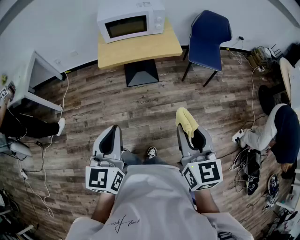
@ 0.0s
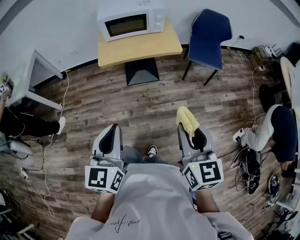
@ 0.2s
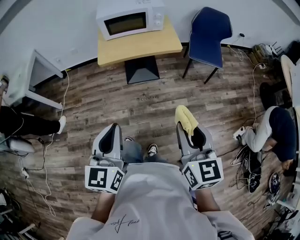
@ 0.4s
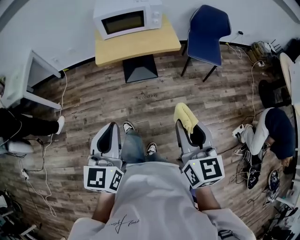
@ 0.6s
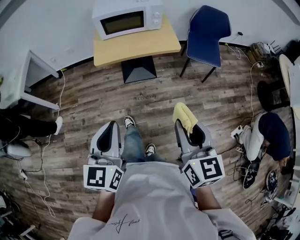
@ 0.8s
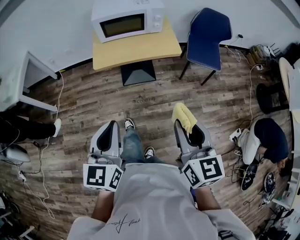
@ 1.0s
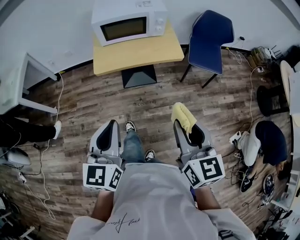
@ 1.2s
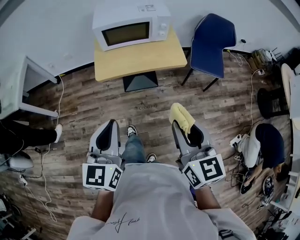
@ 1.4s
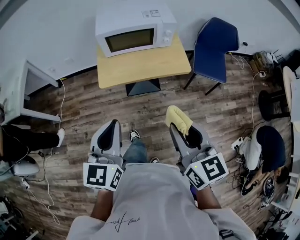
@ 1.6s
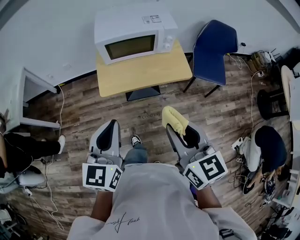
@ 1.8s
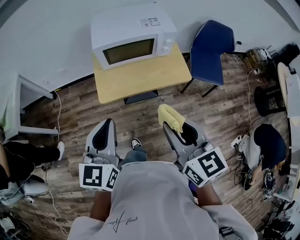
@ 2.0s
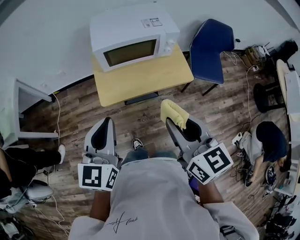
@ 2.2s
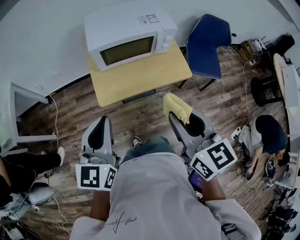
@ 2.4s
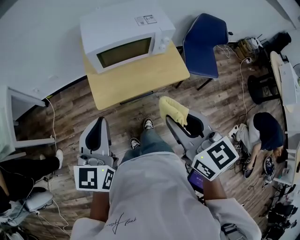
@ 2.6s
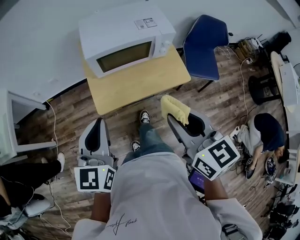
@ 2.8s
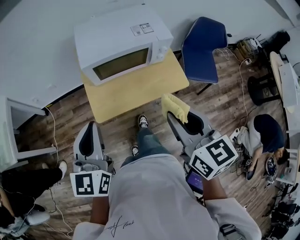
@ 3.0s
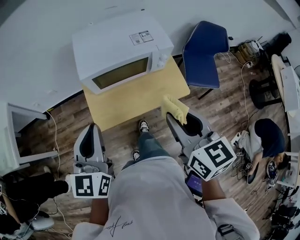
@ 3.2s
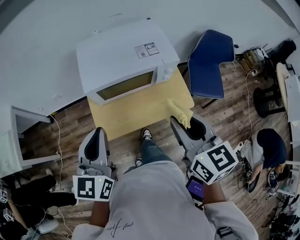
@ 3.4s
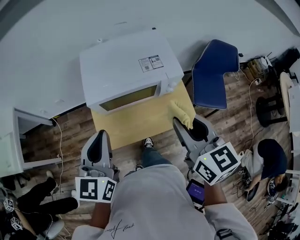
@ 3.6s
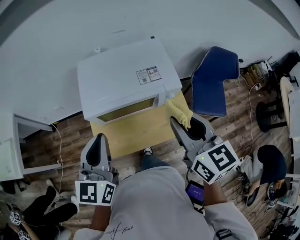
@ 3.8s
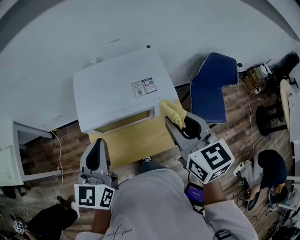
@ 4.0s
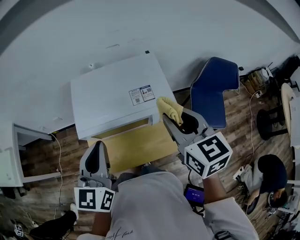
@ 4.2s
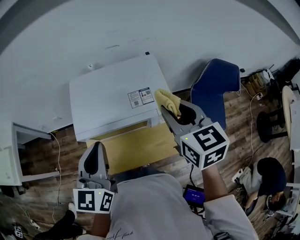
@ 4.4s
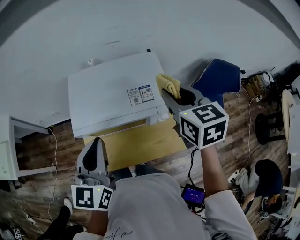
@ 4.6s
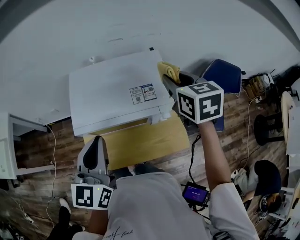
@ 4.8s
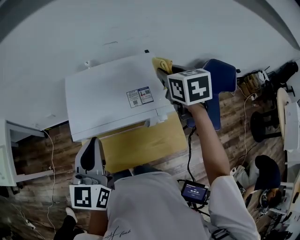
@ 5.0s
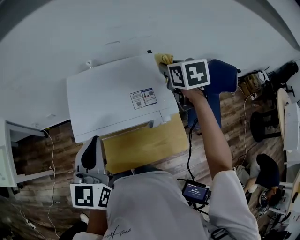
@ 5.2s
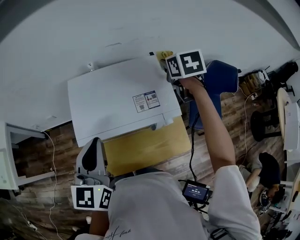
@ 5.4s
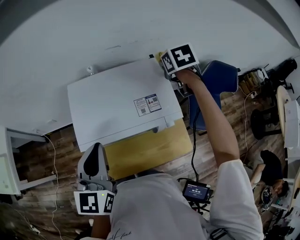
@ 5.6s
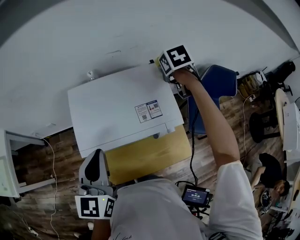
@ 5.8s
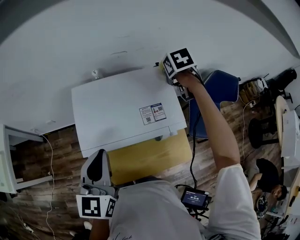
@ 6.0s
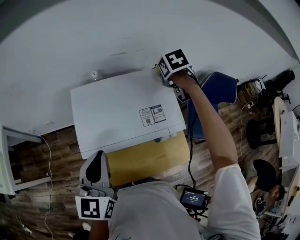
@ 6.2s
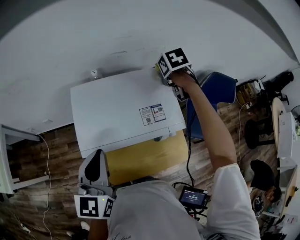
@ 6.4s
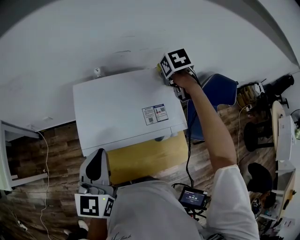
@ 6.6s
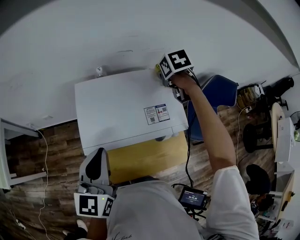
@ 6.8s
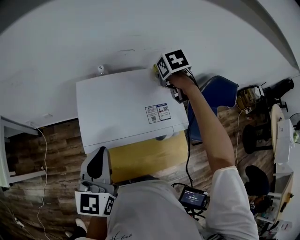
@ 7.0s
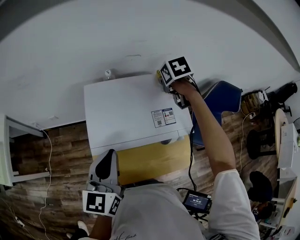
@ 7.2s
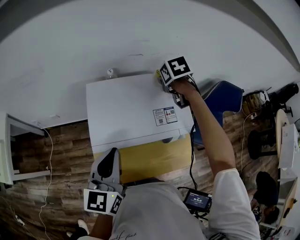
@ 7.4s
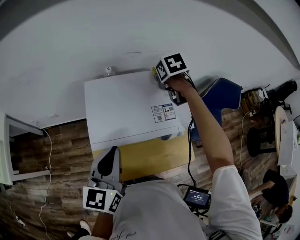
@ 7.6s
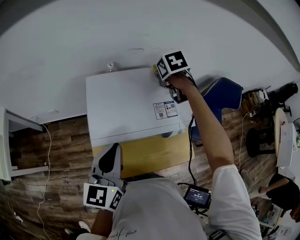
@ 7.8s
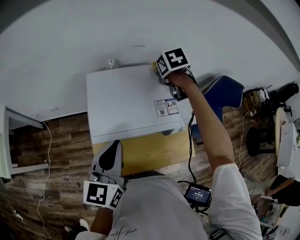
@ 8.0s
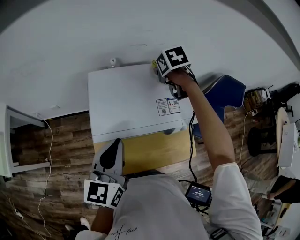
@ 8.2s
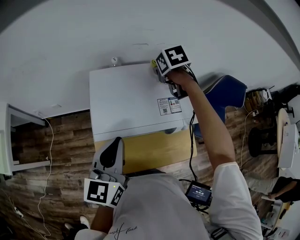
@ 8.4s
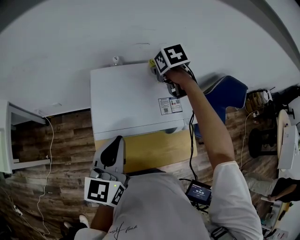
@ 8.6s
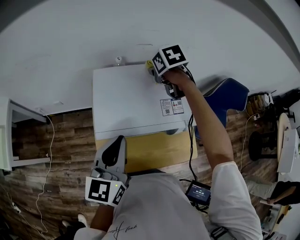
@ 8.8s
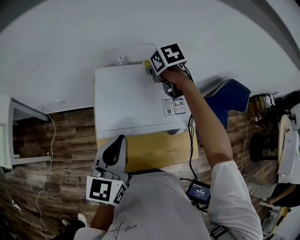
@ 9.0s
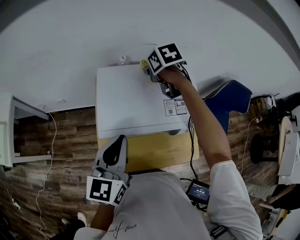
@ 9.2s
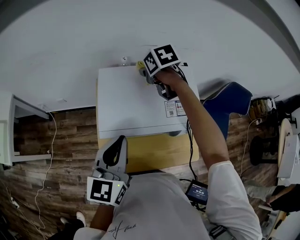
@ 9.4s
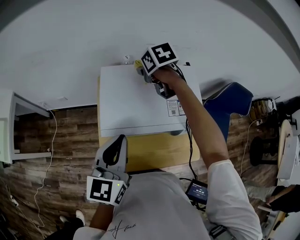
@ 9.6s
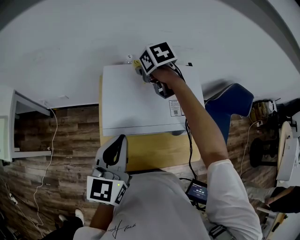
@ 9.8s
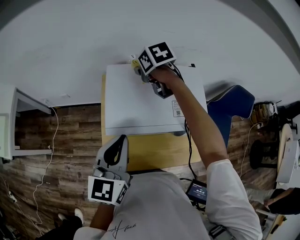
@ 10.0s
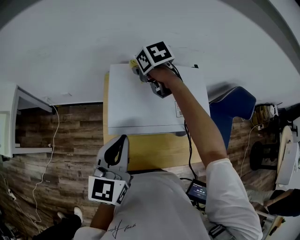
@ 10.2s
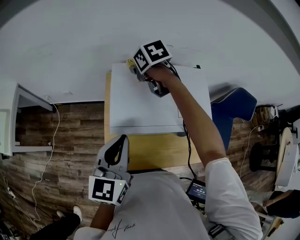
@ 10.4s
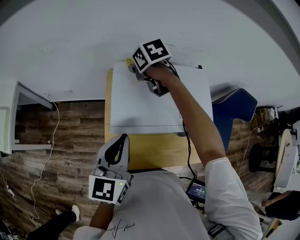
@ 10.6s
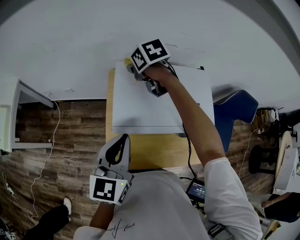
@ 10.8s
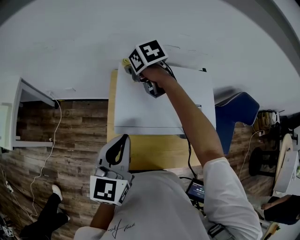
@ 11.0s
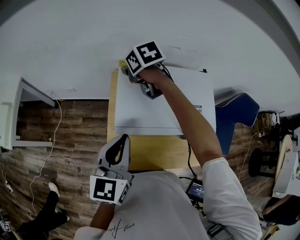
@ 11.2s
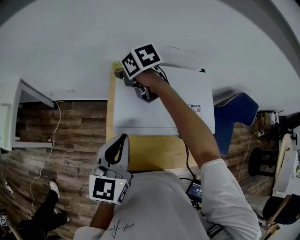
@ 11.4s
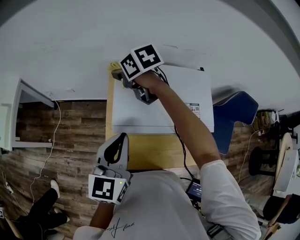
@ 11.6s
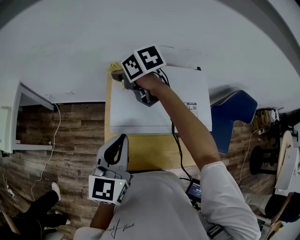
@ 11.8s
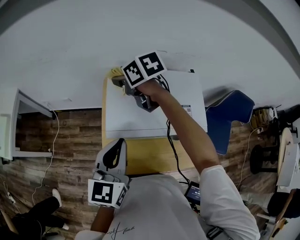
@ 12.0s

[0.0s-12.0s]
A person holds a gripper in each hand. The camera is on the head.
0.0s to 1.6s: The right gripper moves forward and to the left, about 20 cm. The left gripper moves forward, some 20 cm.
1.6s to 3.0s: The right gripper is displaced forward by roughly 20 cm. Meanwhile the left gripper goes about 25 cm forward and to the left.
3.0s to 4.4s: The left gripper moves forward and to the right, approximately 25 cm; the right gripper heads forward, covering about 30 cm.
4.4s to 6.0s: The right gripper is displaced forward by some 25 cm, and points its fingers roughly 40 degrees further downward. The left gripper goes some 5 cm forward.
6.0s to 7.6s: The right gripper is displaced to the left by some 10 cm.
7.6s to 9.0s: The right gripper heads to the left, covering approximately 10 cm.
9.0s to 10.4s: The right gripper shifts approximately 15 cm to the left.
10.4s to 12.0s: The right gripper moves to the left, approximately 5 cm.

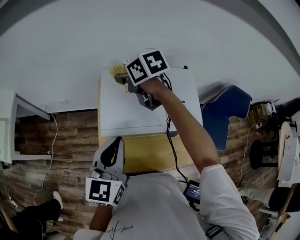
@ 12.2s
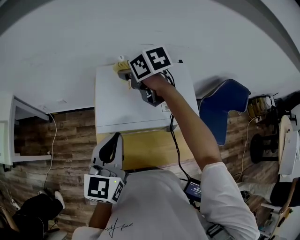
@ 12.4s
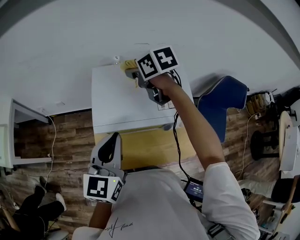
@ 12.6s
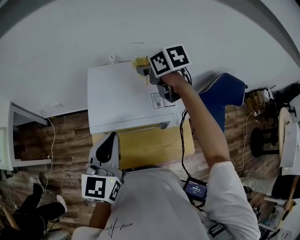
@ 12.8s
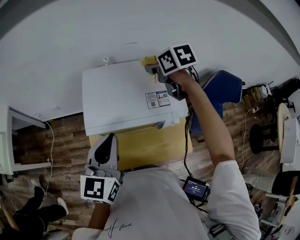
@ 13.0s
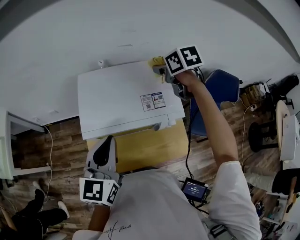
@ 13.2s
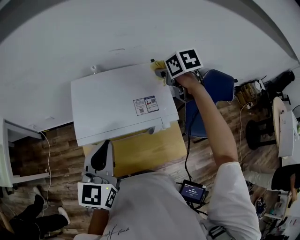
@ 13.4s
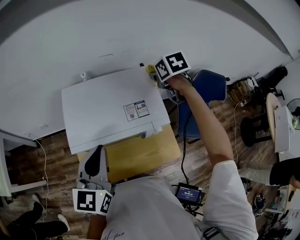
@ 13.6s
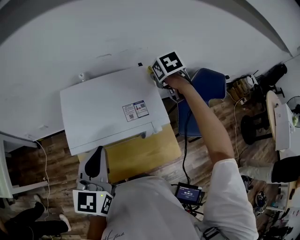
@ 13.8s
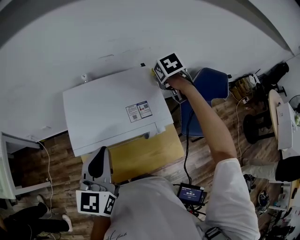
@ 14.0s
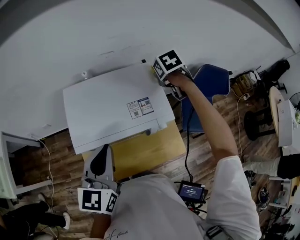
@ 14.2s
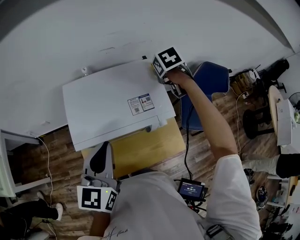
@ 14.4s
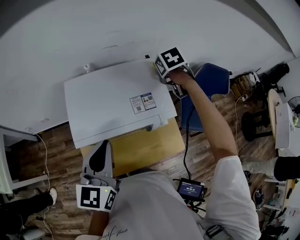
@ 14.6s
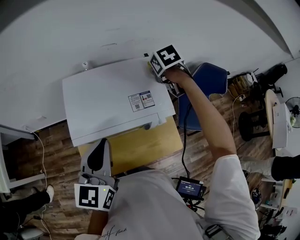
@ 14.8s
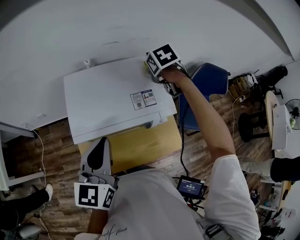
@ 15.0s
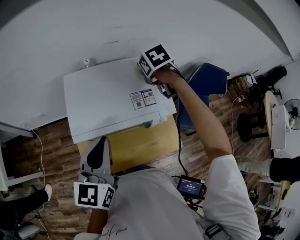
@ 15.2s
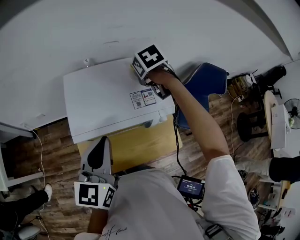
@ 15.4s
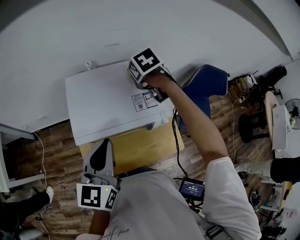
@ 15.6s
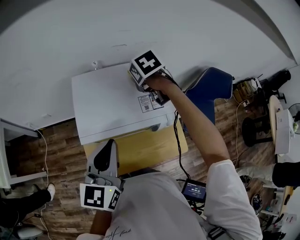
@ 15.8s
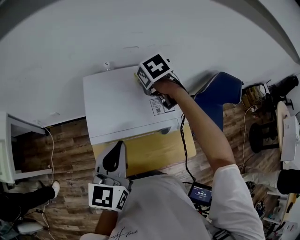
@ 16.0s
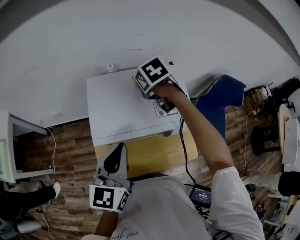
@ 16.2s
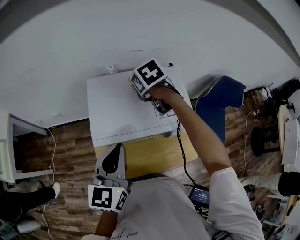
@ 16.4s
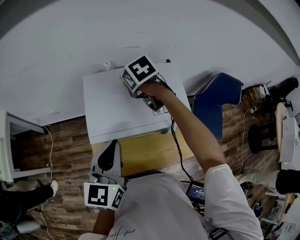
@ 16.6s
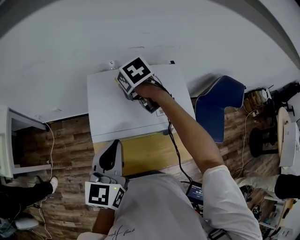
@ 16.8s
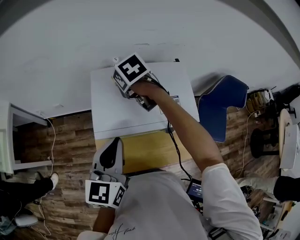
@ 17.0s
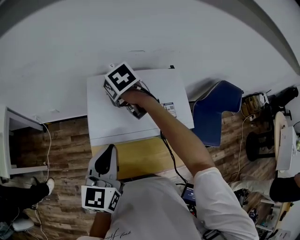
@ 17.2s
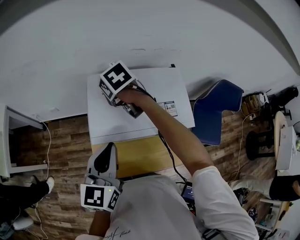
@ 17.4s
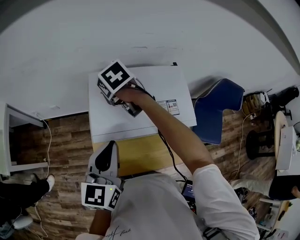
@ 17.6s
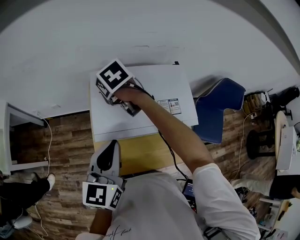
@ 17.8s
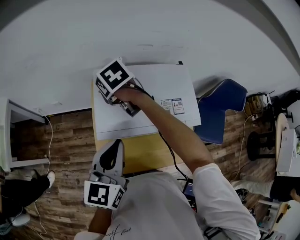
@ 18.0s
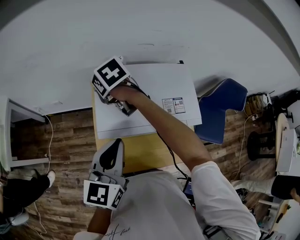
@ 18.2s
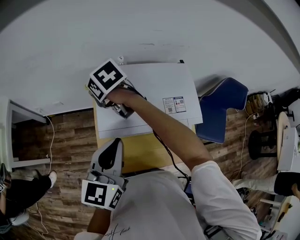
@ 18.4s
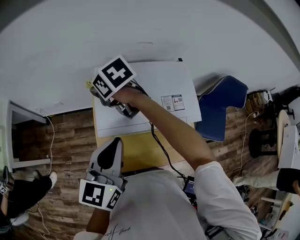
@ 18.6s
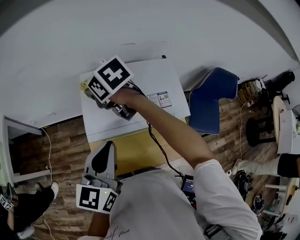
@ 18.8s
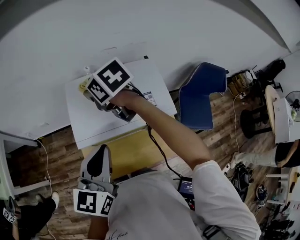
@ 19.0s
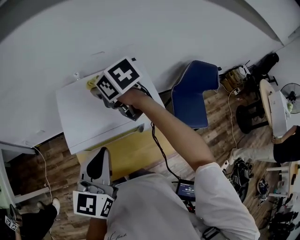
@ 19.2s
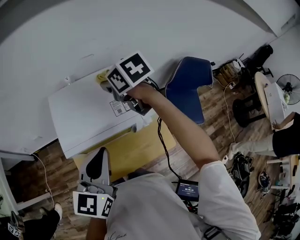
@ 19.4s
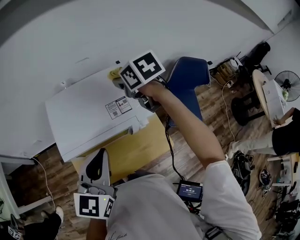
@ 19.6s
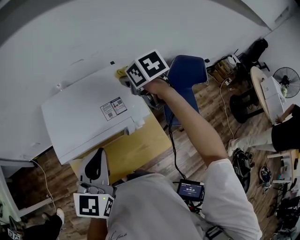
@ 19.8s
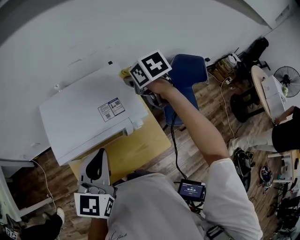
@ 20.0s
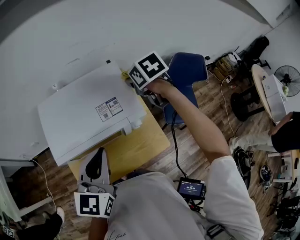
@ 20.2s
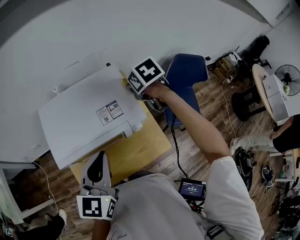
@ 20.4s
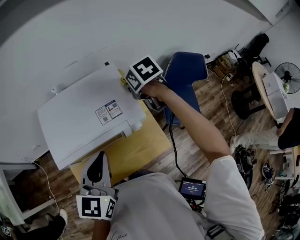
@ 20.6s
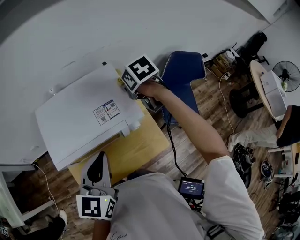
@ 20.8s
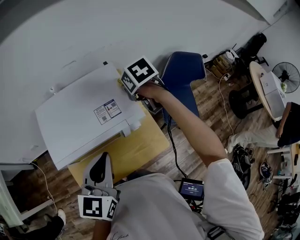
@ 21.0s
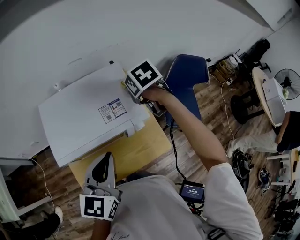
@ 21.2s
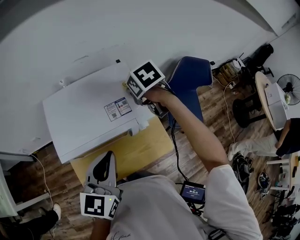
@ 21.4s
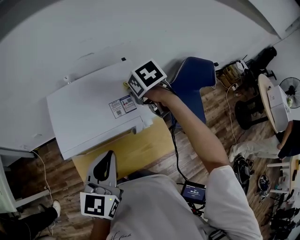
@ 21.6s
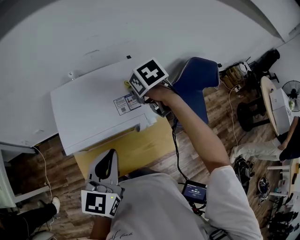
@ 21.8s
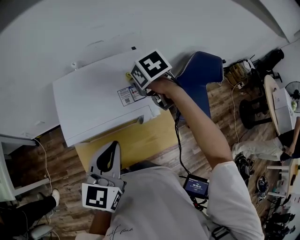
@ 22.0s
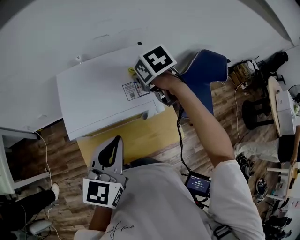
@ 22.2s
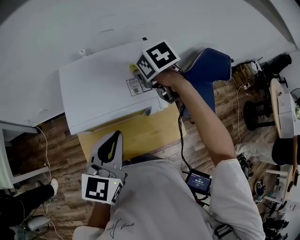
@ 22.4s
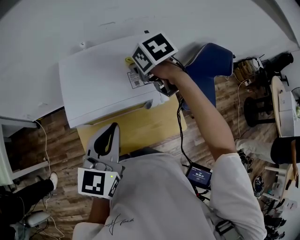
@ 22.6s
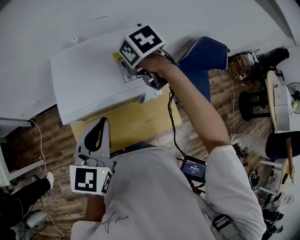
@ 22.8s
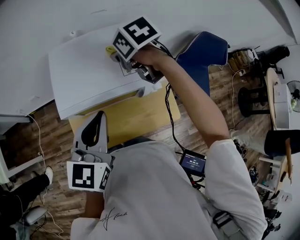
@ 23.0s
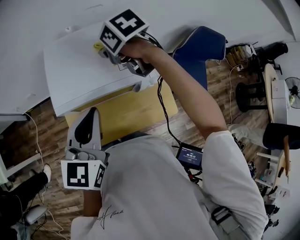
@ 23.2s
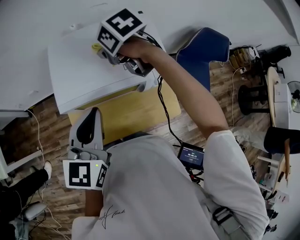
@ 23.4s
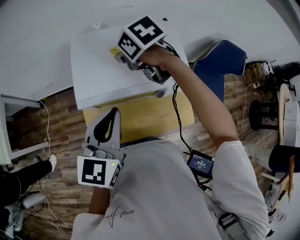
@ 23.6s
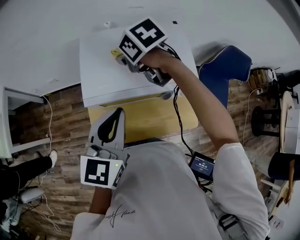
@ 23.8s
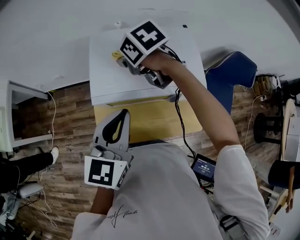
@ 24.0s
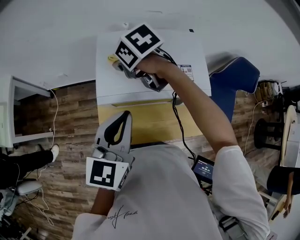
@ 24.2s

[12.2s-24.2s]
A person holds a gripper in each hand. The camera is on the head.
12.2s to 13.8s: The left gripper changes place by approximately 10 cm, while the right gripper shifts by approximately 35 cm, and changes its angle by about 40 degrees.
13.8s to 15.2s: The right gripper moves to the left, about 10 cm.
15.2s to 16.6s: The right gripper heads to the left, covering approximately 15 cm.
16.6s to 18.2s: The right gripper travels to the left by roughly 15 cm.
18.2s to 19.8s: The left gripper changes place by approximately 15 cm. The right gripper shifts by approximately 40 cm, and changes its angle by roughly 30 degrees.
19.8s to 21.2s: The right gripper heads downward, covering roughly 5 cm.
21.2s to 22.6s: The right gripper moves to the left, about 10 cm; the left gripper heads to the left, covering approximately 5 cm.
22.6s to 24.2s: The left gripper goes roughly 5 cm to the left, while the right gripper travels to the left by roughly 20 cm, and changes its angle by some 20 degrees.
